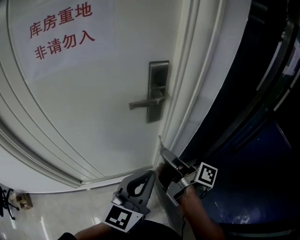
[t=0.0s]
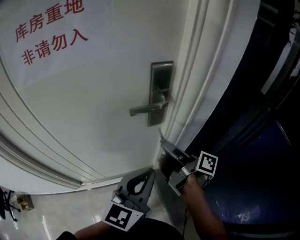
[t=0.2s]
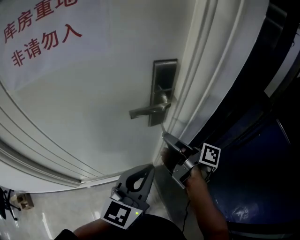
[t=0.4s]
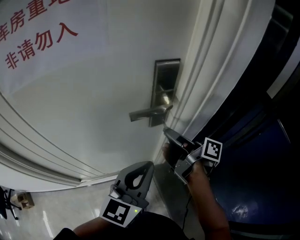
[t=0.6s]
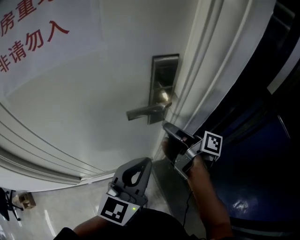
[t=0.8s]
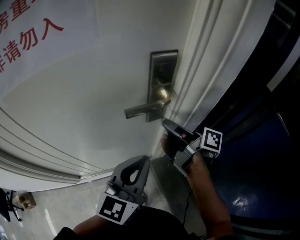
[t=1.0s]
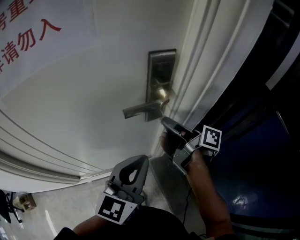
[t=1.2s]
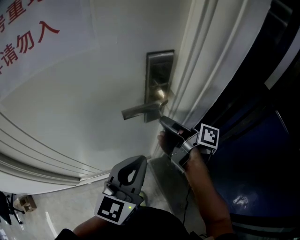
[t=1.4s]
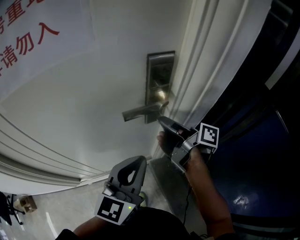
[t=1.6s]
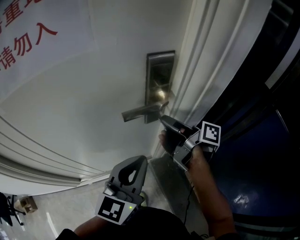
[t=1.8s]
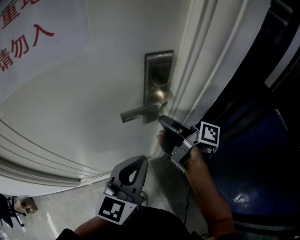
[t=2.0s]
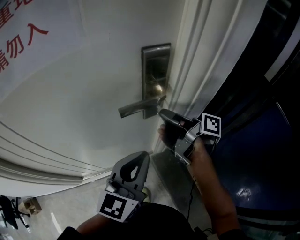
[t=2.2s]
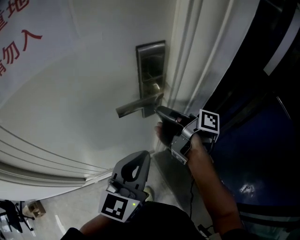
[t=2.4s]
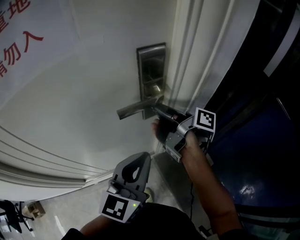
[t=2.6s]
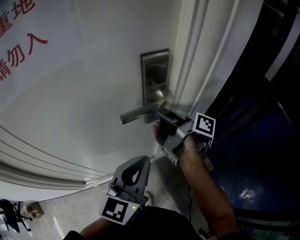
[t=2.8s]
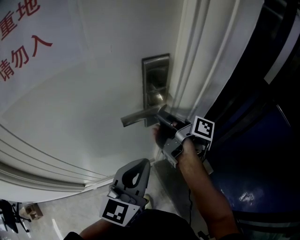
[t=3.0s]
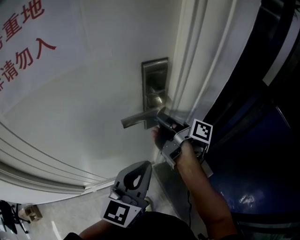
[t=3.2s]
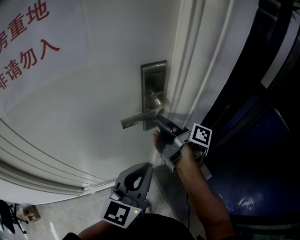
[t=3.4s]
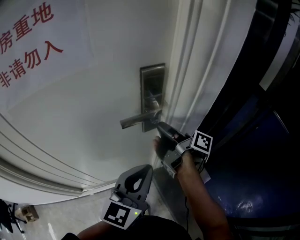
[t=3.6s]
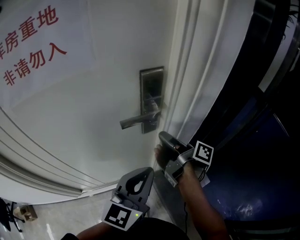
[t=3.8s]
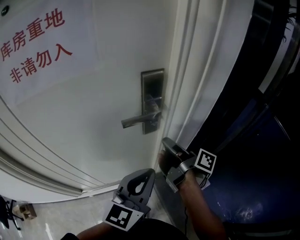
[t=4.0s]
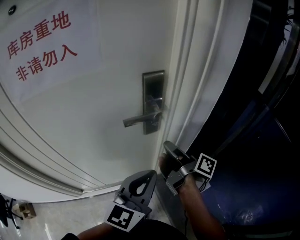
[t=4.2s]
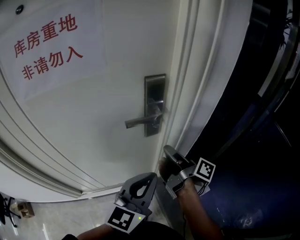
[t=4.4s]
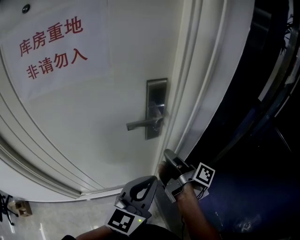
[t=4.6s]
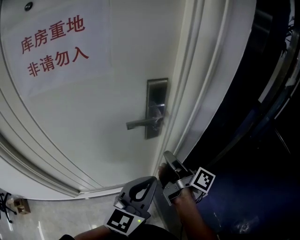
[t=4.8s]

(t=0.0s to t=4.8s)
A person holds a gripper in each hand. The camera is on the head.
t=0.0s - t=1.6s: The left gripper moves approximately 10 cm.
t=3.2s - t=4.8s: The left gripper ends up approximately 5 cm from where it was.

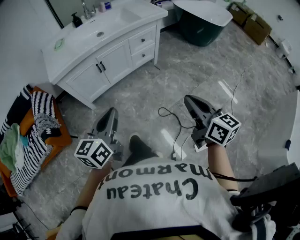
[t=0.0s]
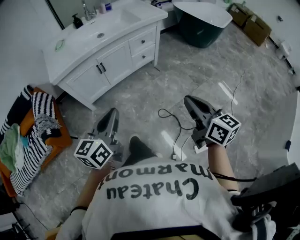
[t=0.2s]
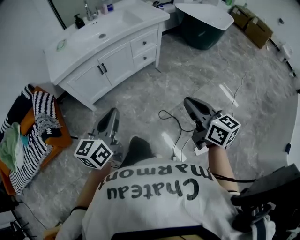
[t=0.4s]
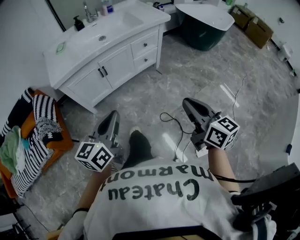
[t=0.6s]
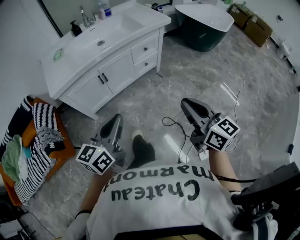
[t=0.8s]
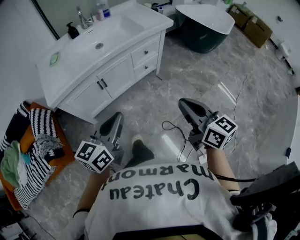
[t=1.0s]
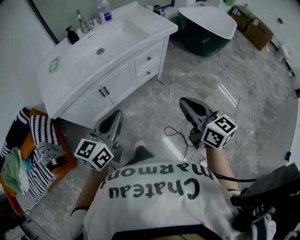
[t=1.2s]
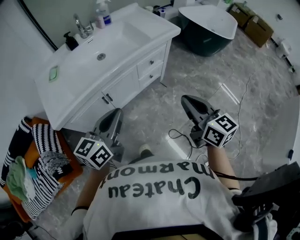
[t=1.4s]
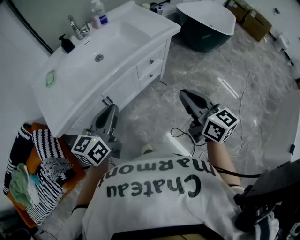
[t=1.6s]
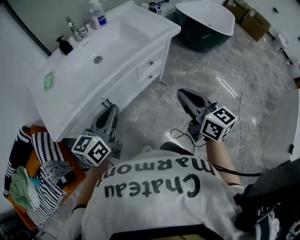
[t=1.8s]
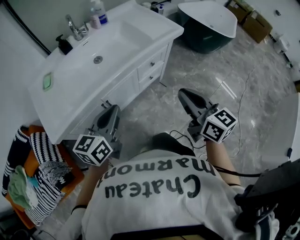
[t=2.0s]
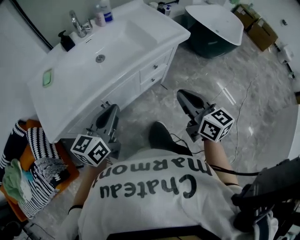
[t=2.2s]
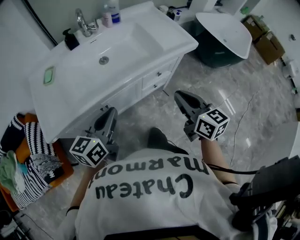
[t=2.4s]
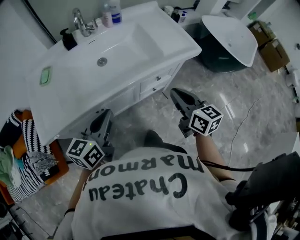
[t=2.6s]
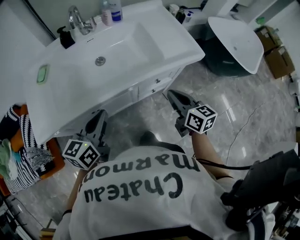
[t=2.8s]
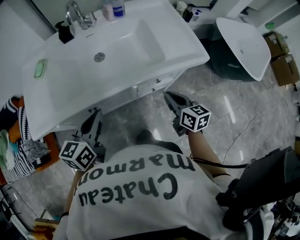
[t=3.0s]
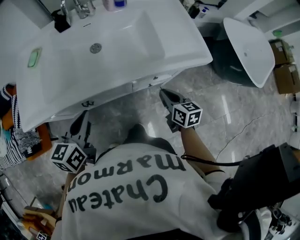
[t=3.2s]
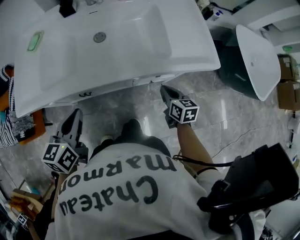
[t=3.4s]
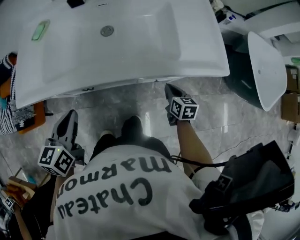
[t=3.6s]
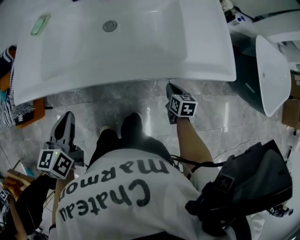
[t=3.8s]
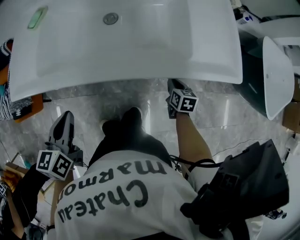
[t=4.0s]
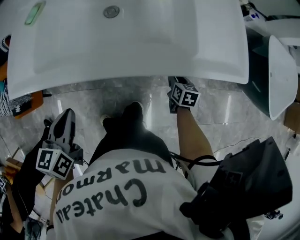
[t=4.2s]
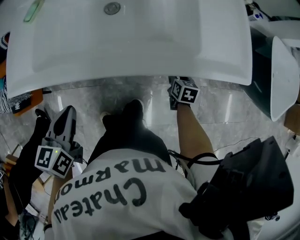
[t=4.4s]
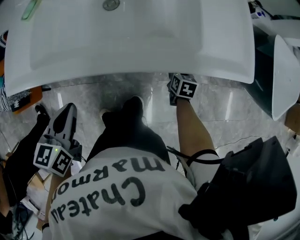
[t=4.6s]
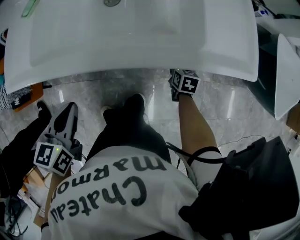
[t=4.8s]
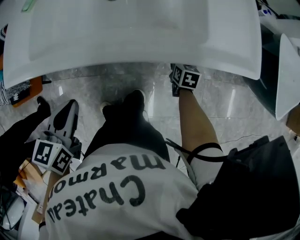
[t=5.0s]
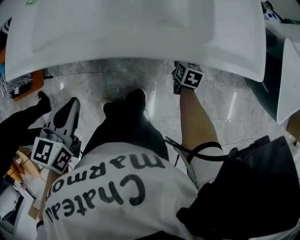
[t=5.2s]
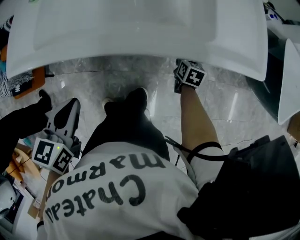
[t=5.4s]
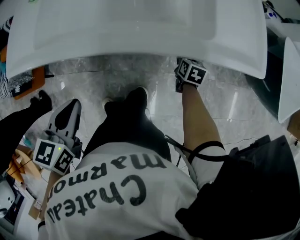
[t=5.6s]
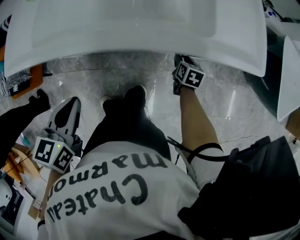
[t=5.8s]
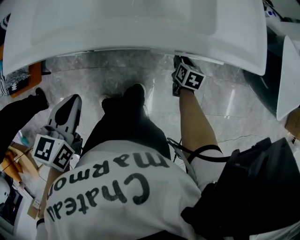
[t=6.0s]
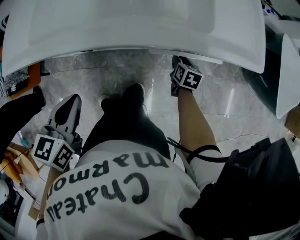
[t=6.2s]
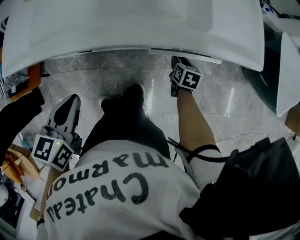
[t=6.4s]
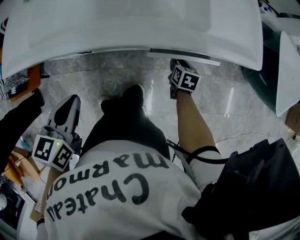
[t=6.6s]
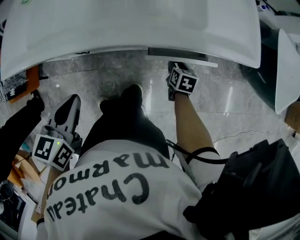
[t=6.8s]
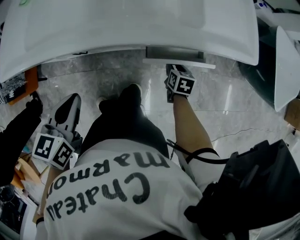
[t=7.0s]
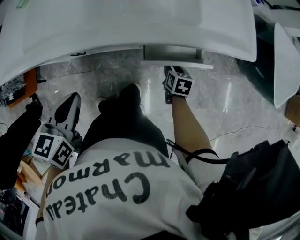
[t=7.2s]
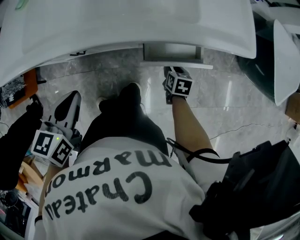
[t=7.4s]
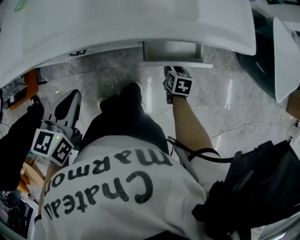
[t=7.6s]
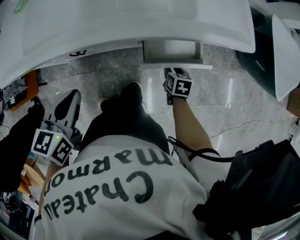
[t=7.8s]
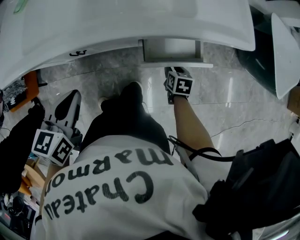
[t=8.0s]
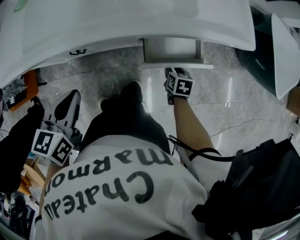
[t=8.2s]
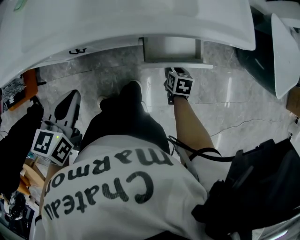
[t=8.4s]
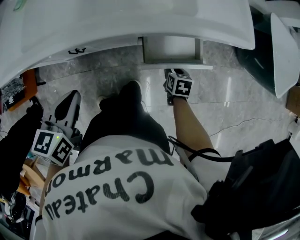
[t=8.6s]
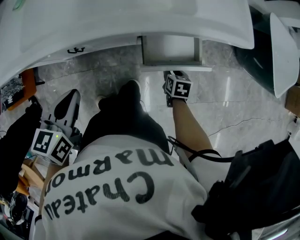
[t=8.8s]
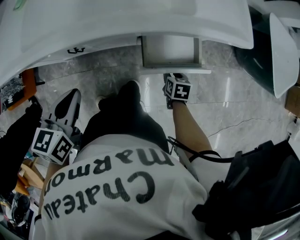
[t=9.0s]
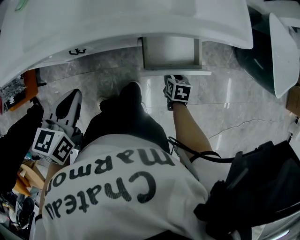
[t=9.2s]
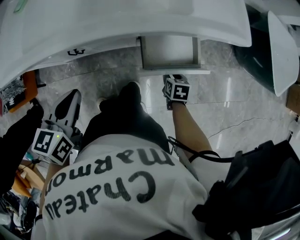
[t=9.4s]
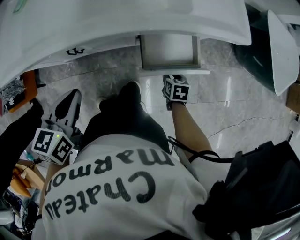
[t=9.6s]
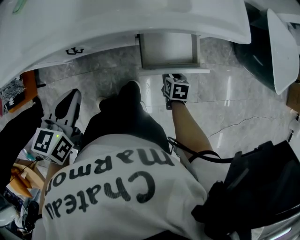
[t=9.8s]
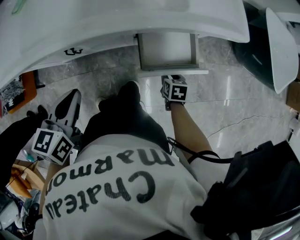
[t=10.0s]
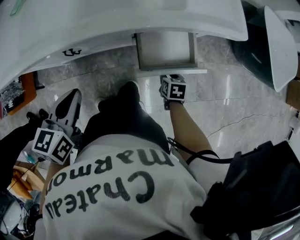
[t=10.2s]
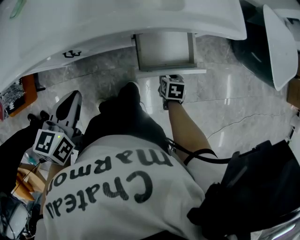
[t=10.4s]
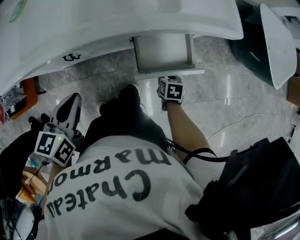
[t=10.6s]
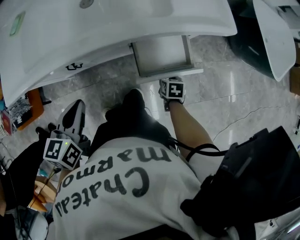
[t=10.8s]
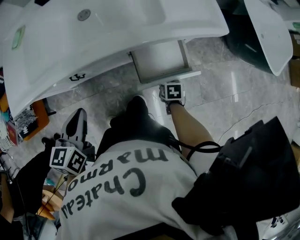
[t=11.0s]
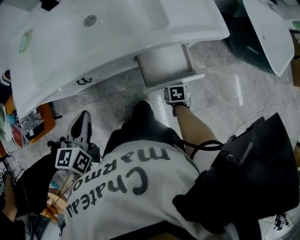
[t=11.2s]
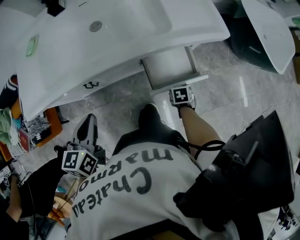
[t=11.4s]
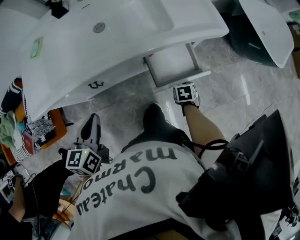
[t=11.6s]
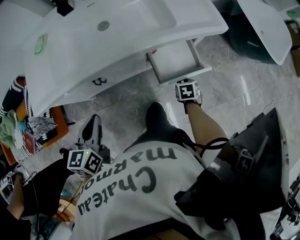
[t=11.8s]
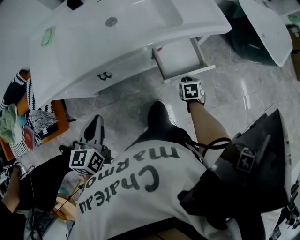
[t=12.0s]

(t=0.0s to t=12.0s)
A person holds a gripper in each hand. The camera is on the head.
t=0.0s - t=1.6s: The grippers both shift forward by roughly 30 cm.
t=1.6s - t=3.0s: The right gripper moves forward and downward, about 35 cm, and turns by approximately 20 degrees; the left gripper is displaced forward and downward by about 20 cm, and turns by about 20 degrees.
t=3.0s - t=4.4s: The left gripper moves downward, approximately 5 cm, and rotates about 30 degrees. Meanwhile the right gripper heads downward and forward, covering some 25 cm, rotates roughly 30 degrees, and opens its fingers.
t=4.4s - t=6.0s: The left gripper shifts by some 5 cm.
t=6.0s - t=7.6s: The right gripper goes approximately 10 cm backward.
t=7.6s - t=9.0s: The grippers move only a little.
t=9.0s - t=10.4s: The grippers stay close to where they were, moving slightly.
t=10.4s - t=12.0s: The left gripper is displaced to the left, backward and upward by about 10 cm; the right gripper moves upward, roughly 10 cm, and closes its fingers.

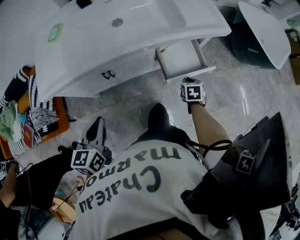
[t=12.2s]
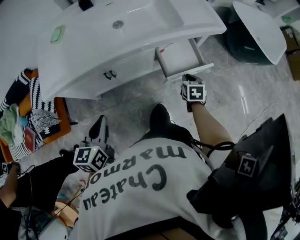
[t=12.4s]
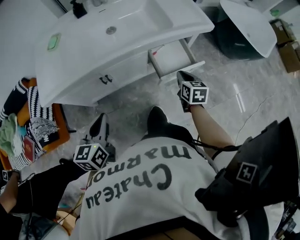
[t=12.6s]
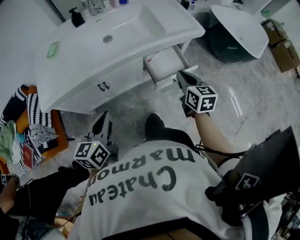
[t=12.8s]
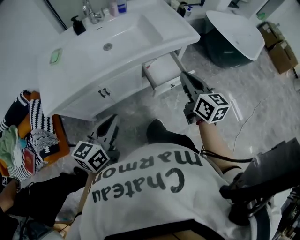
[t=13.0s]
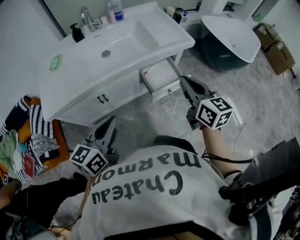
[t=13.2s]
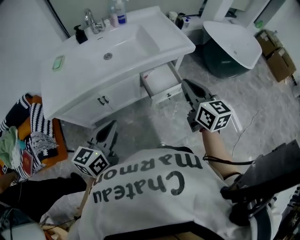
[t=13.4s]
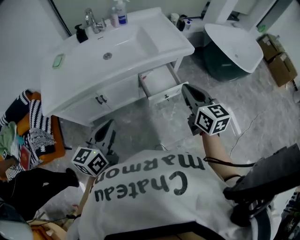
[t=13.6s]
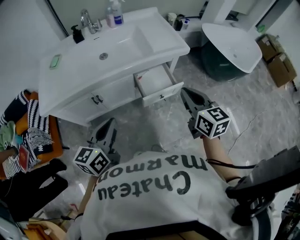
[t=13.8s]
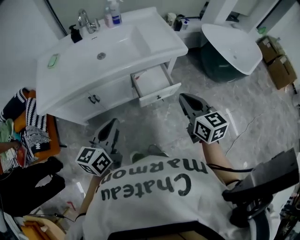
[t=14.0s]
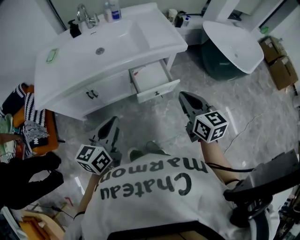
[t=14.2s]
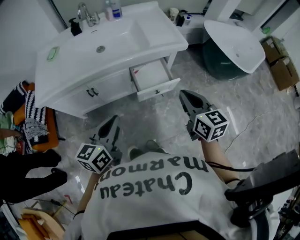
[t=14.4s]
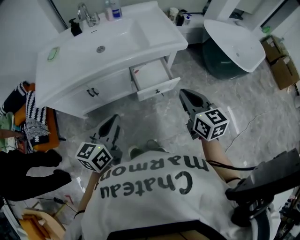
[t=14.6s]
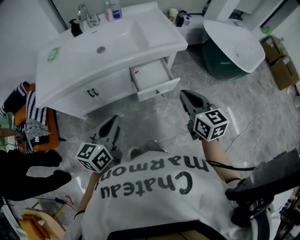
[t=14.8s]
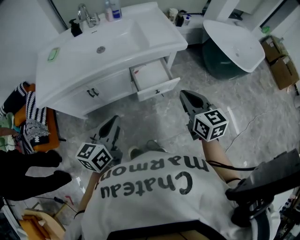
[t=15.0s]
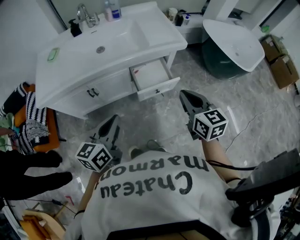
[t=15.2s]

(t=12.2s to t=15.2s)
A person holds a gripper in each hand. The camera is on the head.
t=12.2s - t=13.8s: The left gripper shifts about 15 cm to the right and upward, and turns by about 20 degrees. Meanwhile the right gripper heads upward, covering about 35 cm, and tilts its fingers about 40 degrees upward.
t=13.8s - t=15.2s: The left gripper goes some 5 cm to the right.

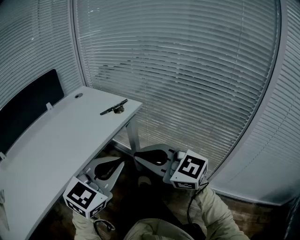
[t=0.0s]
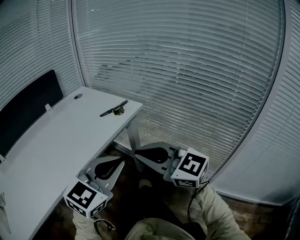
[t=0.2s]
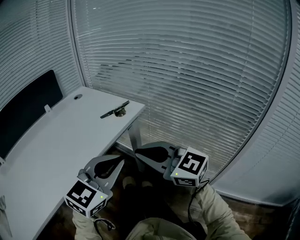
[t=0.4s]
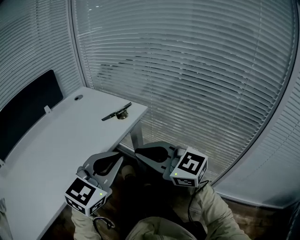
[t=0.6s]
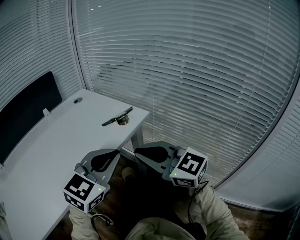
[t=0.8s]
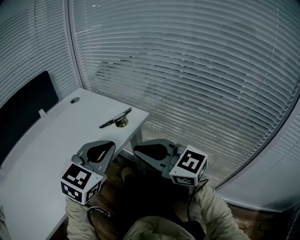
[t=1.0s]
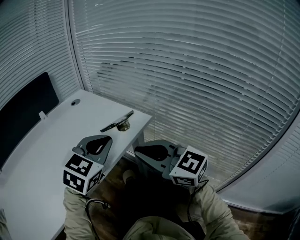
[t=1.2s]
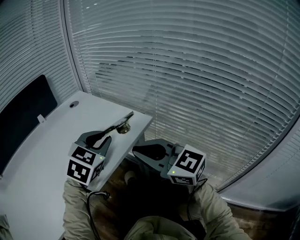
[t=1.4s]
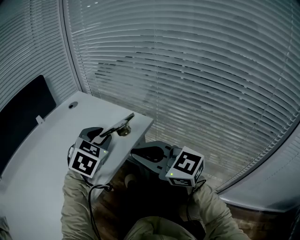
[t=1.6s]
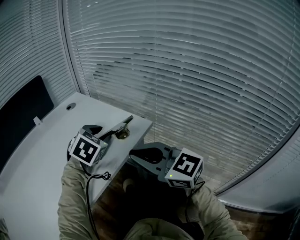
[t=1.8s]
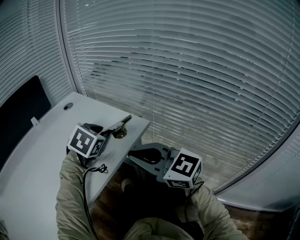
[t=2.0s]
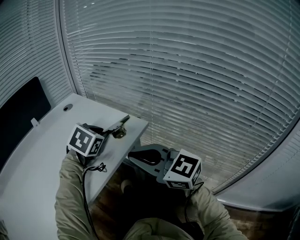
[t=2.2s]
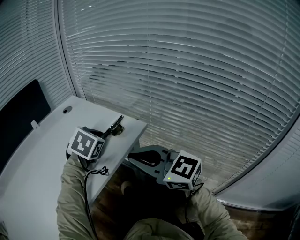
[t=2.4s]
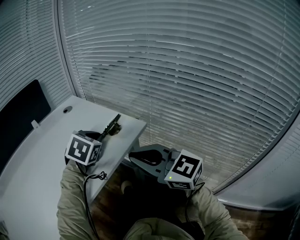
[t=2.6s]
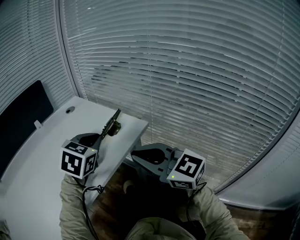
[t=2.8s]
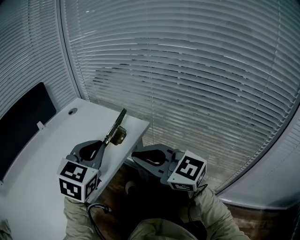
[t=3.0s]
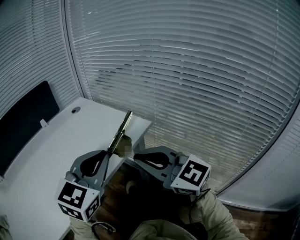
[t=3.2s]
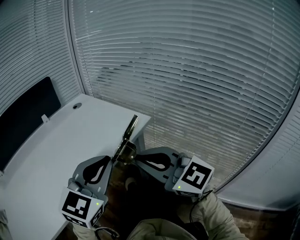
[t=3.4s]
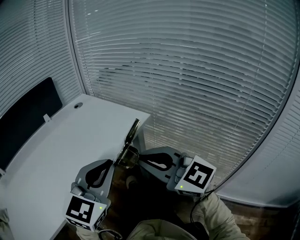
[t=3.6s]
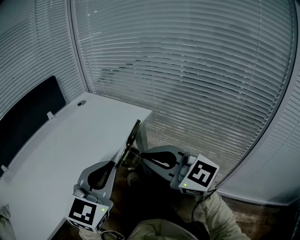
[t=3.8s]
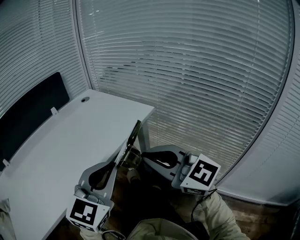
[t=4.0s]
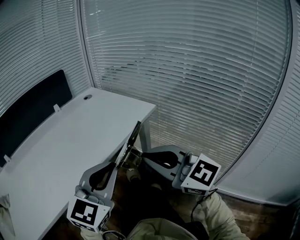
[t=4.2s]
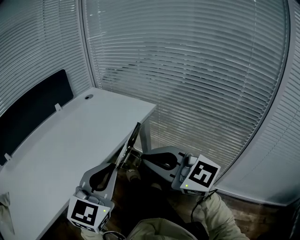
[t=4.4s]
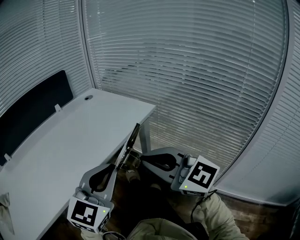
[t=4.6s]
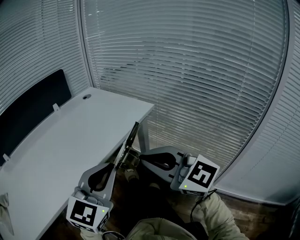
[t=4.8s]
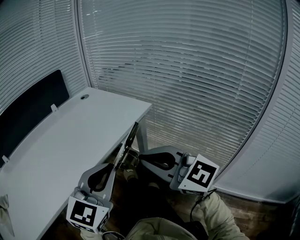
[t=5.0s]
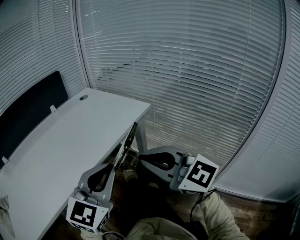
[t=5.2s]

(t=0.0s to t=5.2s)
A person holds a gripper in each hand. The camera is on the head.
t=0.0s - t=1.8s: The right gripper is displaced forward by some 20 cm, while the left gripper moves forward, about 35 cm, tilts its fingers approximately 30 degrees downward, and opens its fingers.
t=1.8s - t=3.4s: The left gripper is displaced backward and upward by roughly 25 cm, tilts its fingers about 30 degrees upward, and closes its fingers. Meanwhile the right gripper is displaced backward by approximately 10 cm.
t=3.4s - t=5.2s: The left gripper goes about 10 cm backward and to the left. Meanwhile the right gripper is displaced backward by approximately 10 cm.
